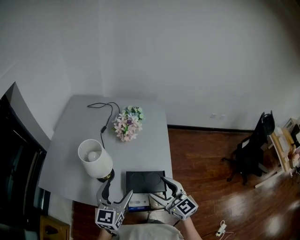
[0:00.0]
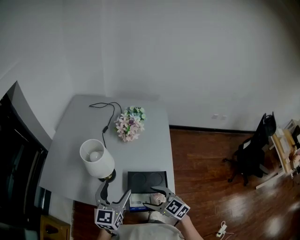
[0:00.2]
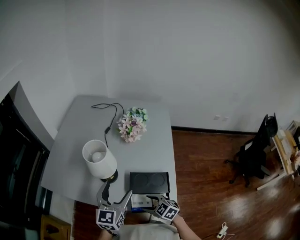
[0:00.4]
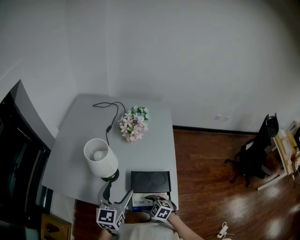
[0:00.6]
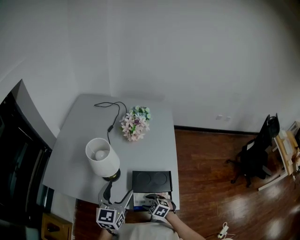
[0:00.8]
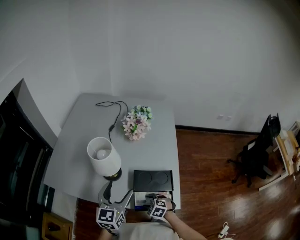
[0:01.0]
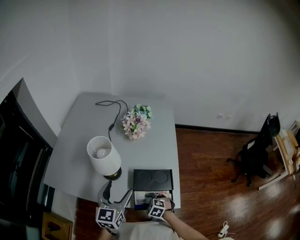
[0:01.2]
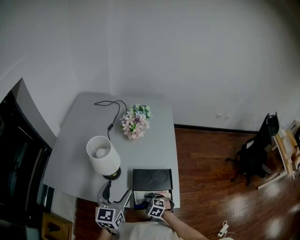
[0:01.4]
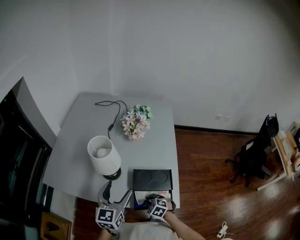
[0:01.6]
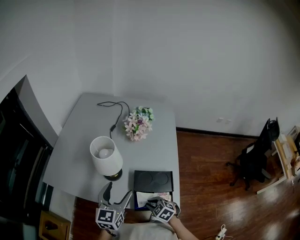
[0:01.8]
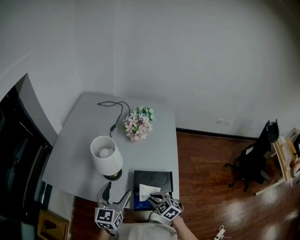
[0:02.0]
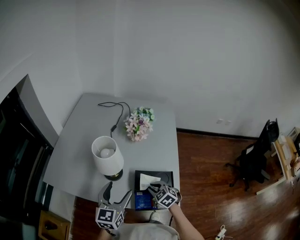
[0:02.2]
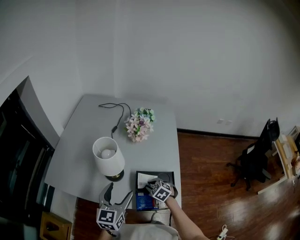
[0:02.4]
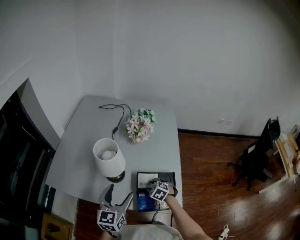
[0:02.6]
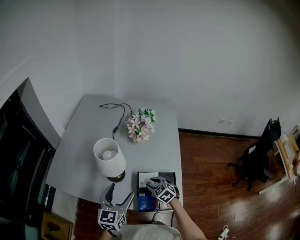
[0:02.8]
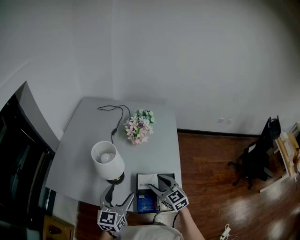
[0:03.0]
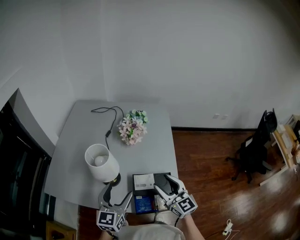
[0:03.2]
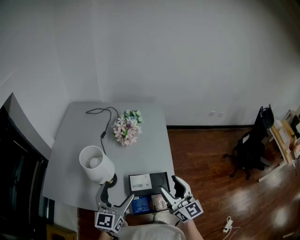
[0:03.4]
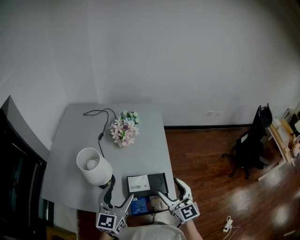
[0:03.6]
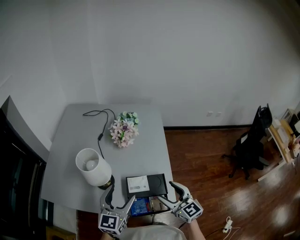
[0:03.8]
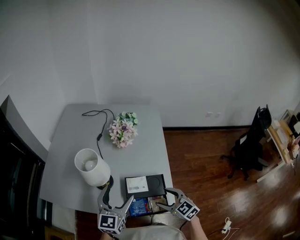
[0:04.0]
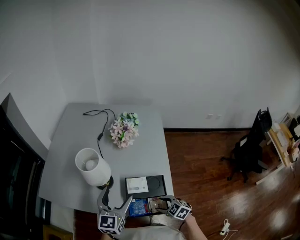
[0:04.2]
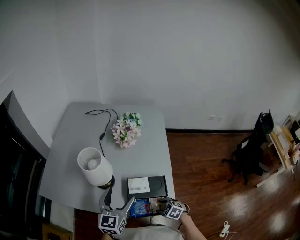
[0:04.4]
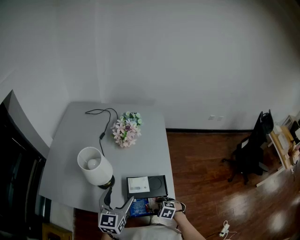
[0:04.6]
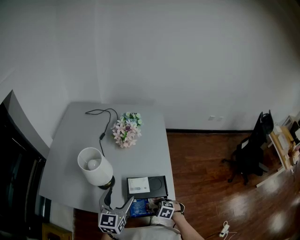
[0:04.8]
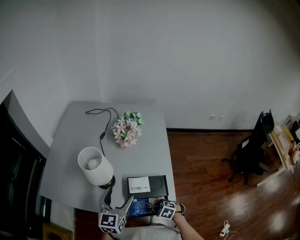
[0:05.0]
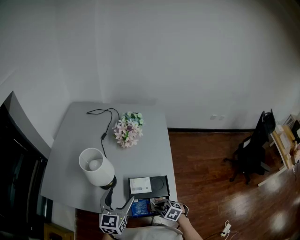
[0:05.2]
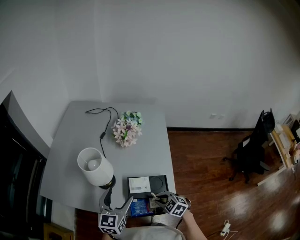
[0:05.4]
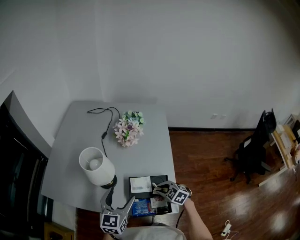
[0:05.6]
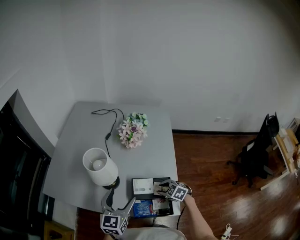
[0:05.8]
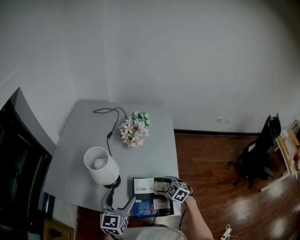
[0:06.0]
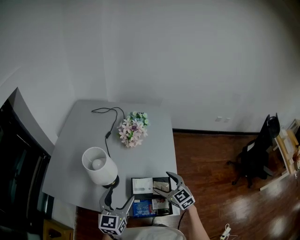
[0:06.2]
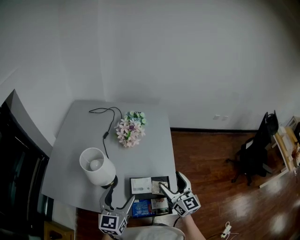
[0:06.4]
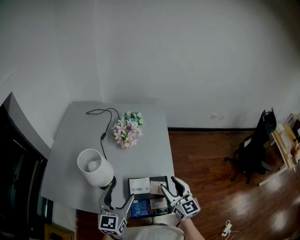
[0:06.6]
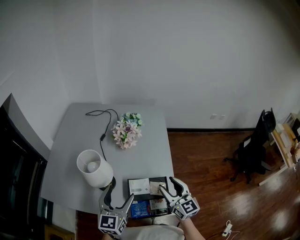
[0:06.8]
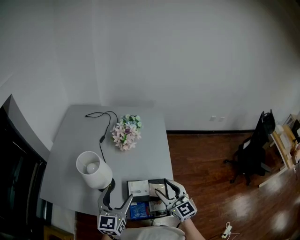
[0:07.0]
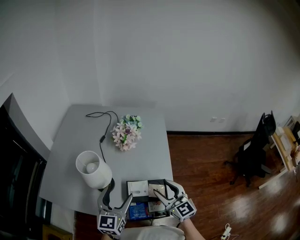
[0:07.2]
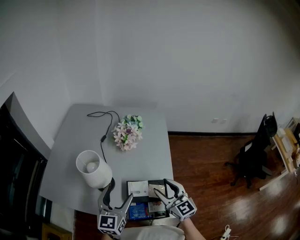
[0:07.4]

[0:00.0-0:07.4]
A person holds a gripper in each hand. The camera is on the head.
0.0 to 1.4 s: The right gripper shifts some 30 cm downward, points its fingers some 50 degrees further downward, and closes its fingers.
1.4 to 3.0 s: The right gripper swings up and down, approximately 20 cm each way, with 2 reversals, and angles its fingers upward, by some 40 degrees.
3.0 to 4.4 s: The right gripper moves downward and backward, about 25 cm, and tilts its fingers about 40 degrees downward.
4.4 to 6.0 s: The right gripper heads forward and upward, covering some 15 cm, and closes, then opens again.
6.0 to 7.4 s: The right gripper goes about 20 cm upward, and tips its fingers upward by some 50 degrees.

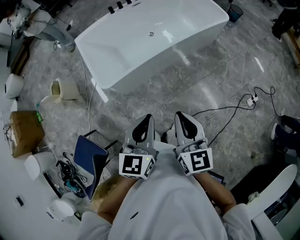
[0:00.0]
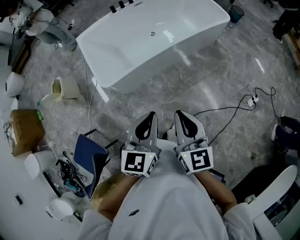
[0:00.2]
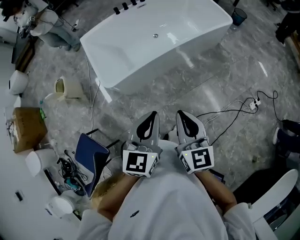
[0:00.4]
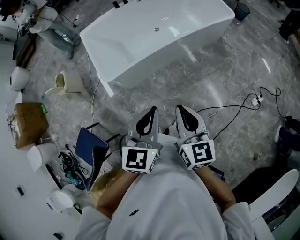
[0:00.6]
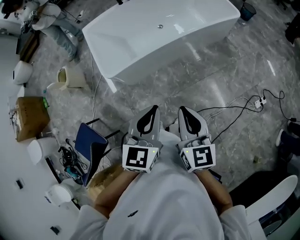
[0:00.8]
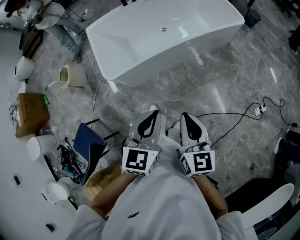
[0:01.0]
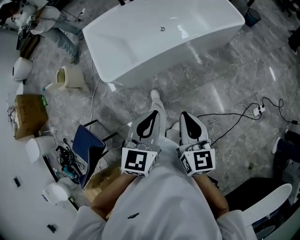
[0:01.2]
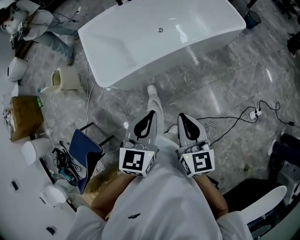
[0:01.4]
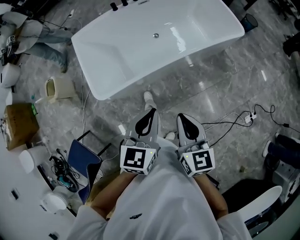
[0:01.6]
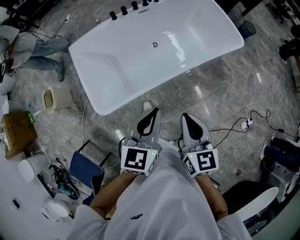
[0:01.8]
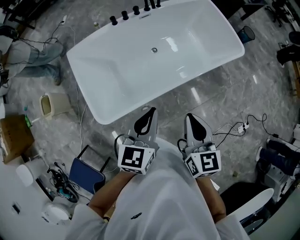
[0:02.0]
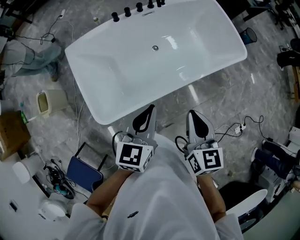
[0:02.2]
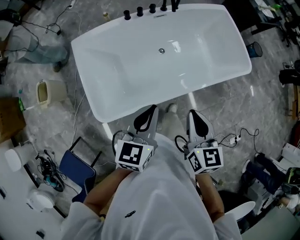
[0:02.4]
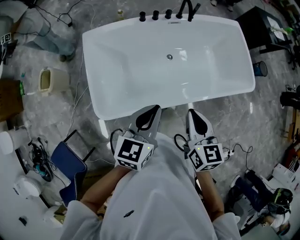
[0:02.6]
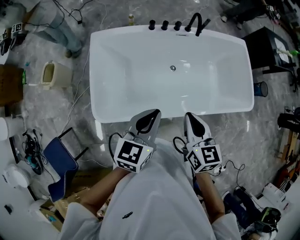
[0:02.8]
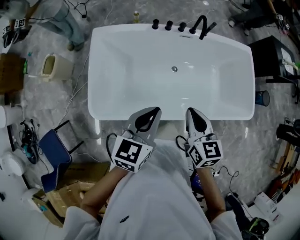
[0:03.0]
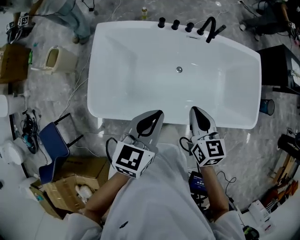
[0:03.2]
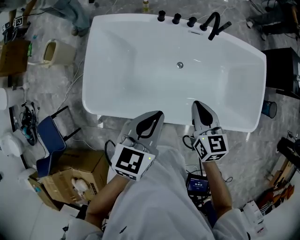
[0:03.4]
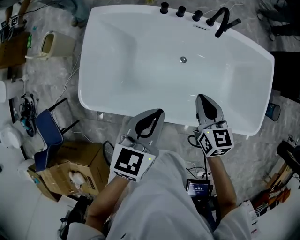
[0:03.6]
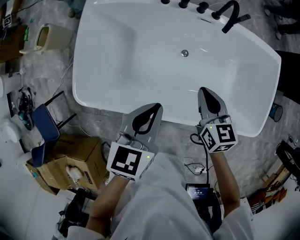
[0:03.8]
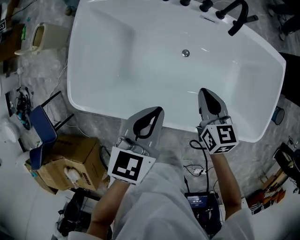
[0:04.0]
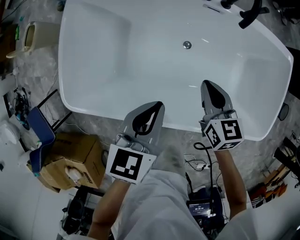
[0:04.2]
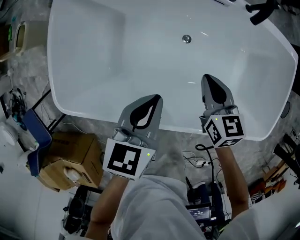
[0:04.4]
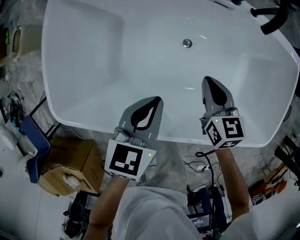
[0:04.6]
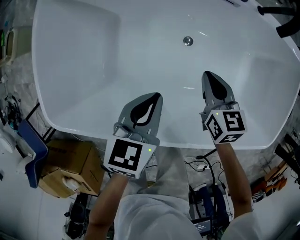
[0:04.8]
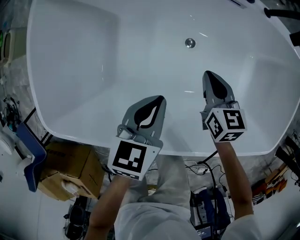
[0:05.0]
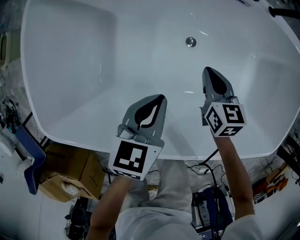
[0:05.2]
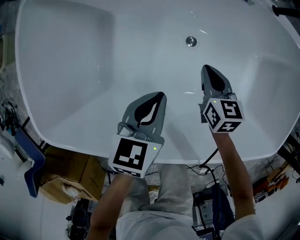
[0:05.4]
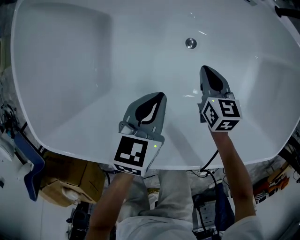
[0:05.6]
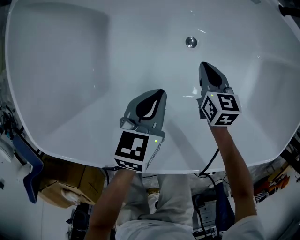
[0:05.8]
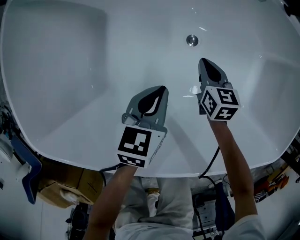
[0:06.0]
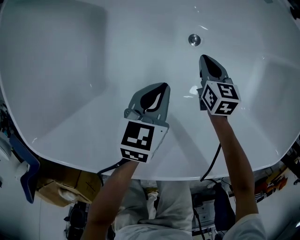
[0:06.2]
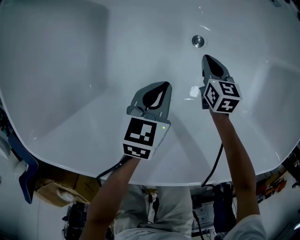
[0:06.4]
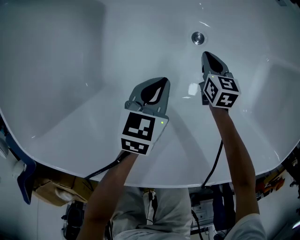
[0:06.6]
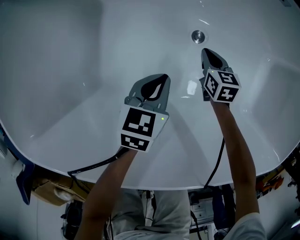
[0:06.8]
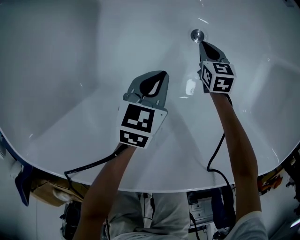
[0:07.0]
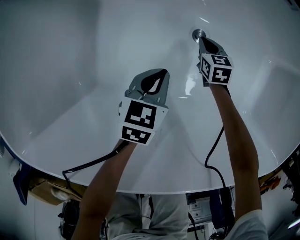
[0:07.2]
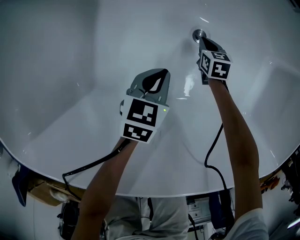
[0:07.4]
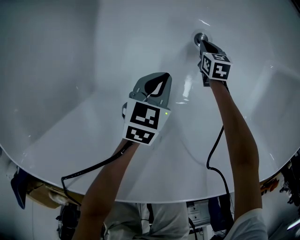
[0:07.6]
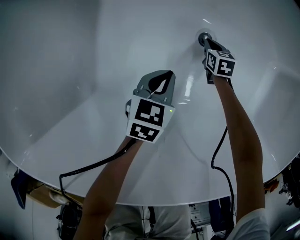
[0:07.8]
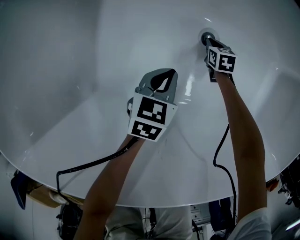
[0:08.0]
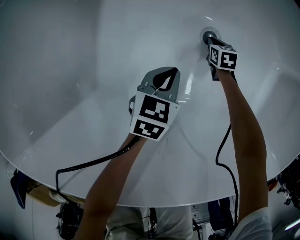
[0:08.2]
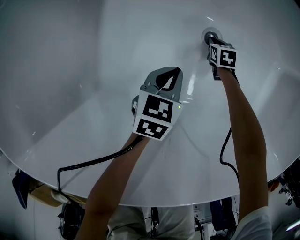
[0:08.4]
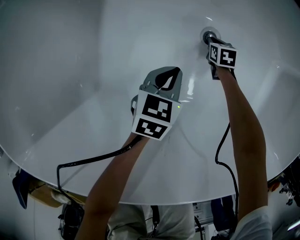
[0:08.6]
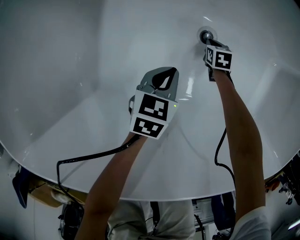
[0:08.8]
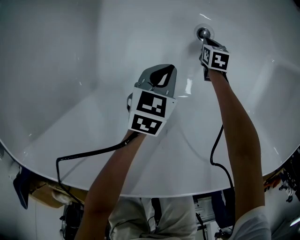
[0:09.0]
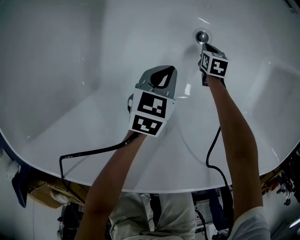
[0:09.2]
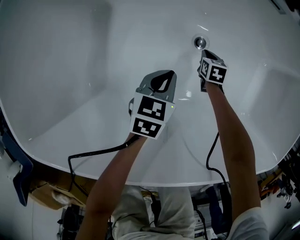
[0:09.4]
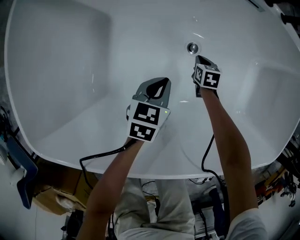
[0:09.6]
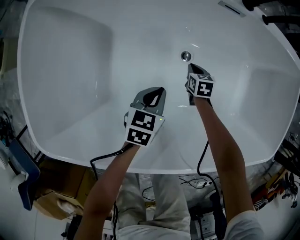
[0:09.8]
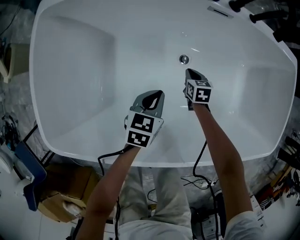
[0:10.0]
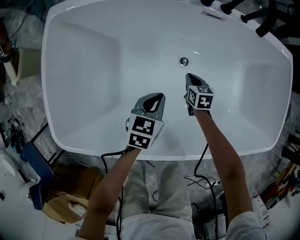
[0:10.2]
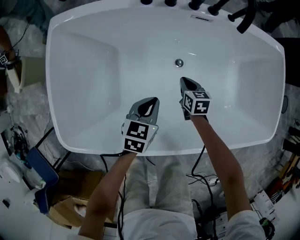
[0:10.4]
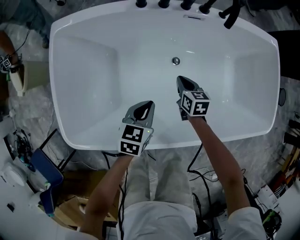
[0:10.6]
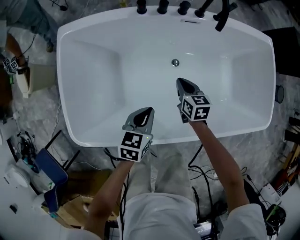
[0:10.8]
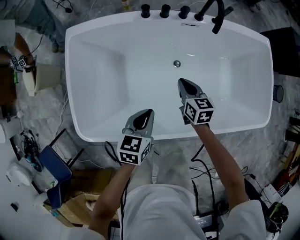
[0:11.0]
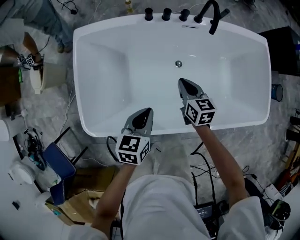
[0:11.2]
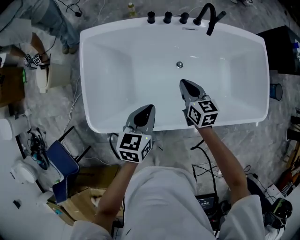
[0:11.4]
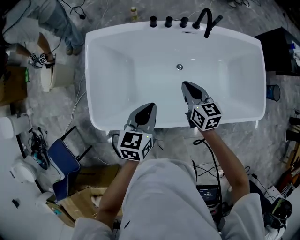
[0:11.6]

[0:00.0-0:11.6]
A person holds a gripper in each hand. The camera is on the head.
0.0 to 1.4 s: The two grippers go about 10 cm forward.
1.4 to 2.8 s: The two grippers travel together, forward, some 40 cm.
2.8 to 4.4 s: The grippers both shift downward and forward by some 35 cm. The left gripper changes its angle by approximately 30 degrees, while the right gripper swivels some 20 degrees.
4.4 to 5.8 s: Both grippers move downward, about 30 cm.
5.8 to 7.2 s: Both grippers move downward, roughly 20 cm.
7.2 to 8.8 s: The right gripper is displaced downward by about 10 cm.
8.8 to 10.2 s: Both grippers travel together upward, roughly 30 cm. The right gripper rotates approximately 20 degrees.
10.2 to 11.6 s: Both grippers move upward, approximately 40 cm. The right gripper rotates approximately 20 degrees.

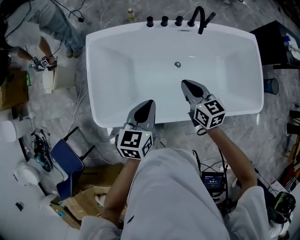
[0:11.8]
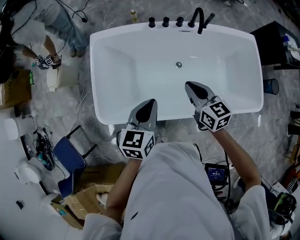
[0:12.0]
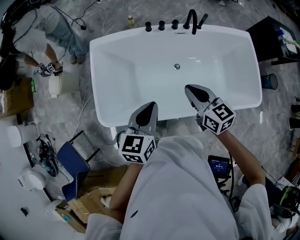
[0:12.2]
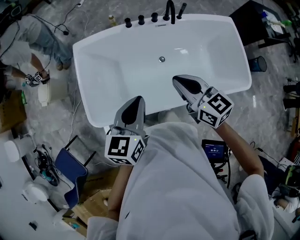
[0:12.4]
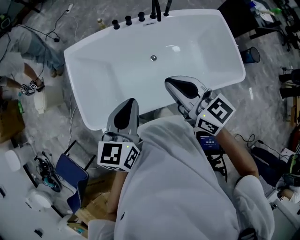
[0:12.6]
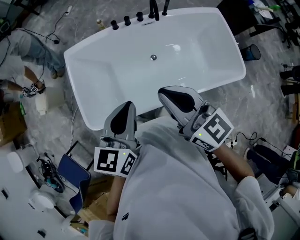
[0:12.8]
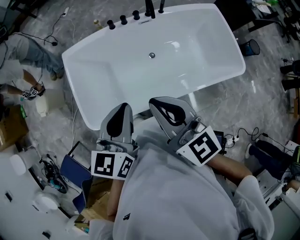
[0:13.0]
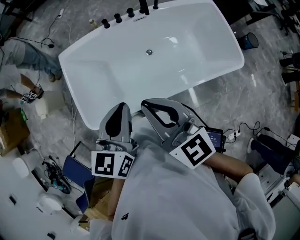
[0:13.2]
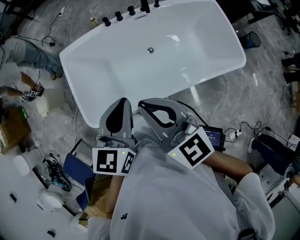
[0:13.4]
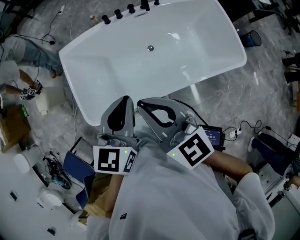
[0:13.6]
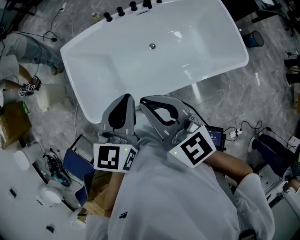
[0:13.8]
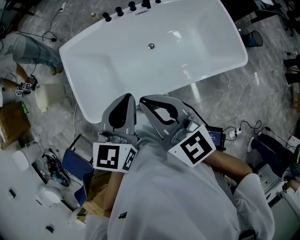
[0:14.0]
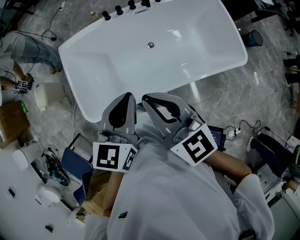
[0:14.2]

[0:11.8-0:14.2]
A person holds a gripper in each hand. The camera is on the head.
11.8 to 13.0 s: The left gripper travels upward and backward by approximately 20 cm. Meanwhile the right gripper shifts approximately 30 cm upward and backward, and swivels about 20 degrees.
13.0 to 14.2 s: The left gripper ends up roughly 5 cm from where it was.

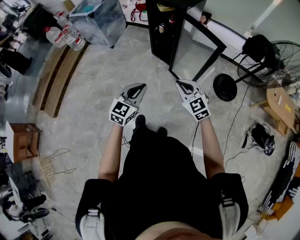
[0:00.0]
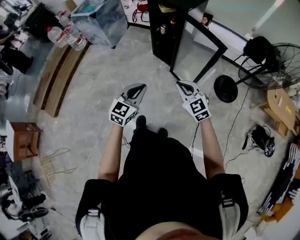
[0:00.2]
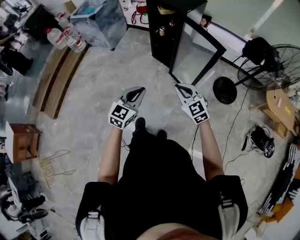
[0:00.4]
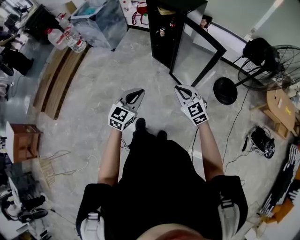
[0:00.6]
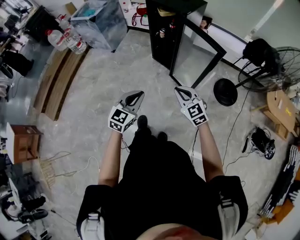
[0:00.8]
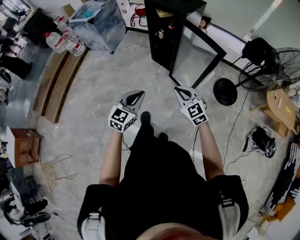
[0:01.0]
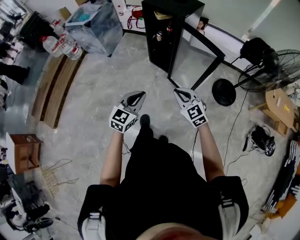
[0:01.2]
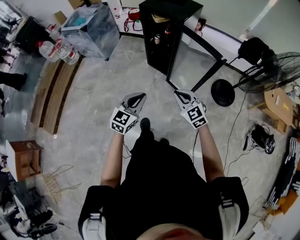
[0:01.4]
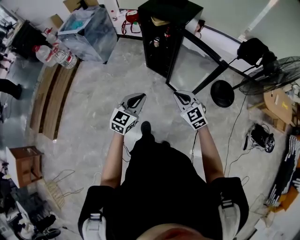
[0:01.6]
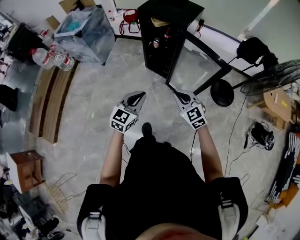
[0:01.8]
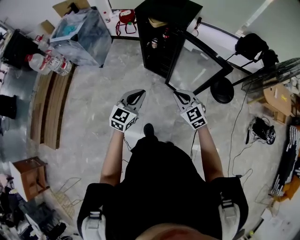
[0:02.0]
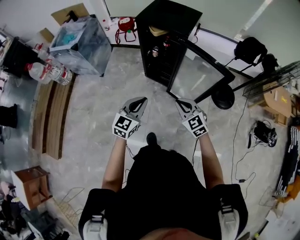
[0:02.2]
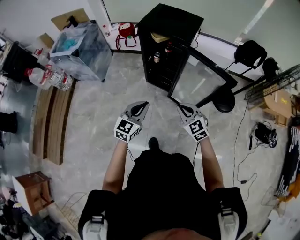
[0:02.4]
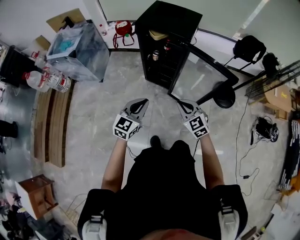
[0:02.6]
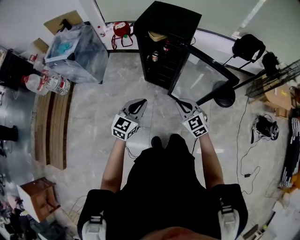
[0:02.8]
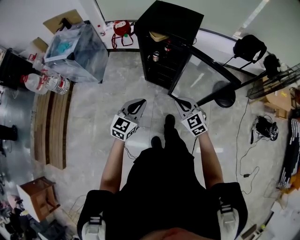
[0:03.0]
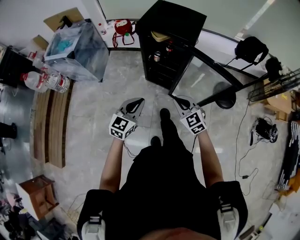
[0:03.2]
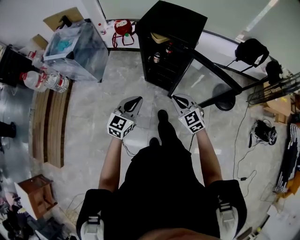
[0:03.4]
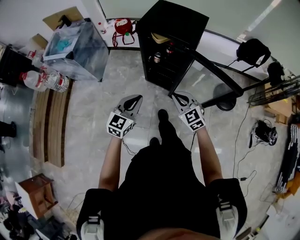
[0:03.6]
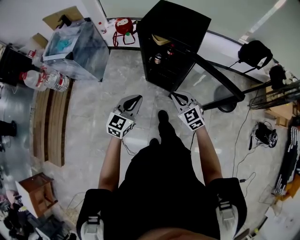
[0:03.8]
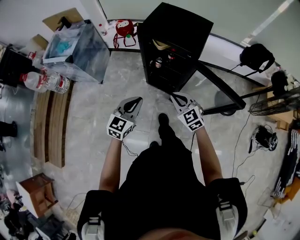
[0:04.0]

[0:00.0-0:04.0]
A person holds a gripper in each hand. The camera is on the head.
0.0 to 1.4 s: The two grippers go roughly 10 cm forward.
1.4 to 2.6 s: The two grippers go some 20 cm forward and to the left.
2.6 to 4.0 s: The grippers both shift forward by about 15 cm.
